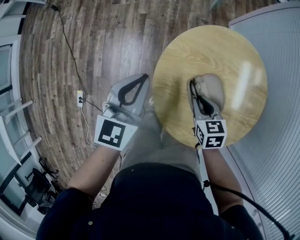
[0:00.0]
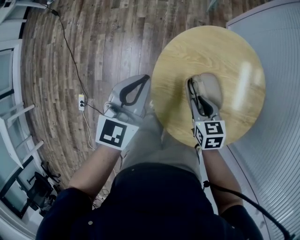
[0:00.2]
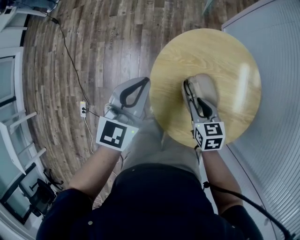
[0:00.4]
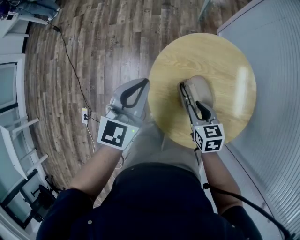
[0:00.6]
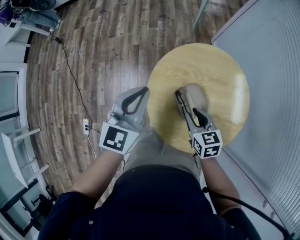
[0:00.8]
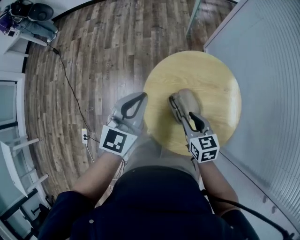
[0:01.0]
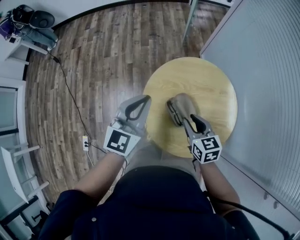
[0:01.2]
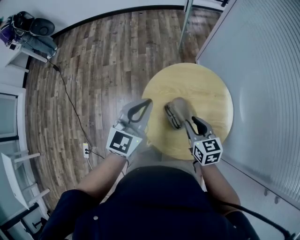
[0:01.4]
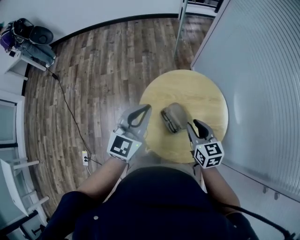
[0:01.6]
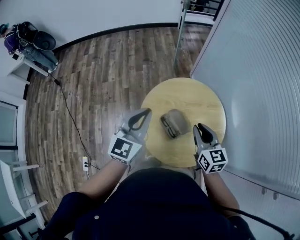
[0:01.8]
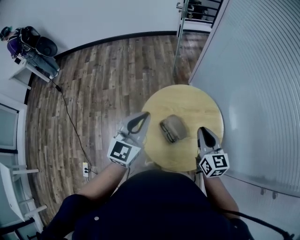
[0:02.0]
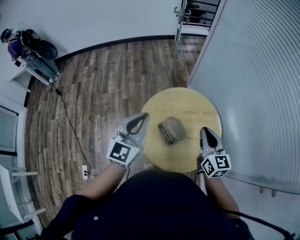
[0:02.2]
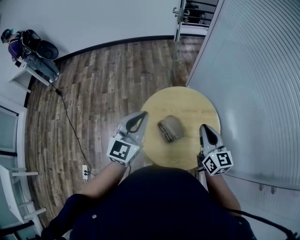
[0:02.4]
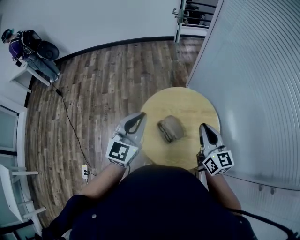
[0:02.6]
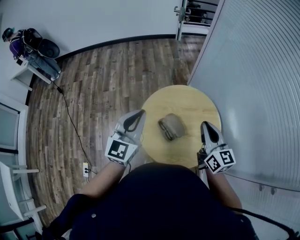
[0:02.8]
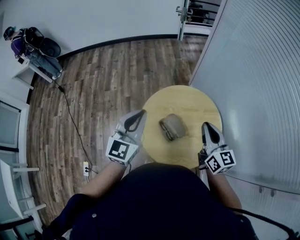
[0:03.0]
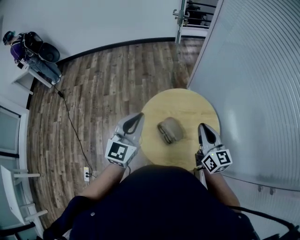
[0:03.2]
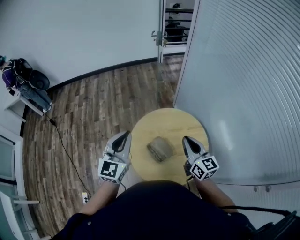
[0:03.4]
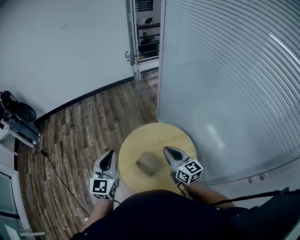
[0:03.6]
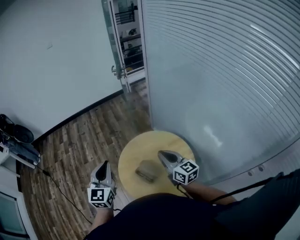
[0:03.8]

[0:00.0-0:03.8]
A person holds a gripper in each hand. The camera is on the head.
0:00.0 to 0:01.2: The right gripper heads upward, covering roughly 15 cm. The left gripper heads upward and to the right, covering some 15 cm.
0:01.2 to 0:02.6: The left gripper heads upward, covering roughly 10 cm. The right gripper travels upward and to the right by approximately 25 cm, rotates roughly 30 degrees, and closes its fingers.
0:02.6 to 0:03.8: The grippers move only a little.

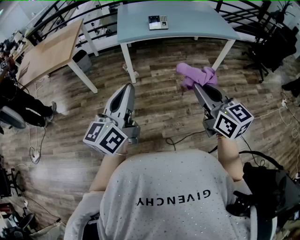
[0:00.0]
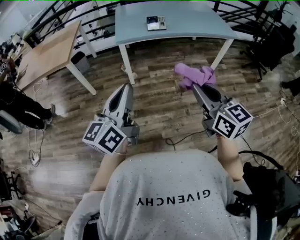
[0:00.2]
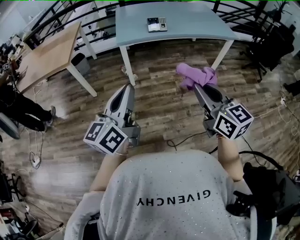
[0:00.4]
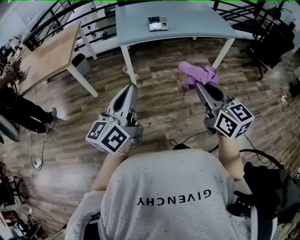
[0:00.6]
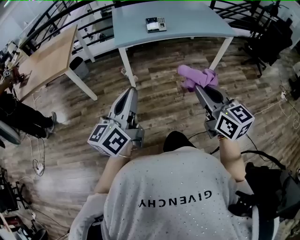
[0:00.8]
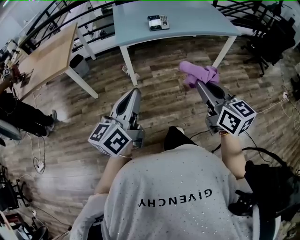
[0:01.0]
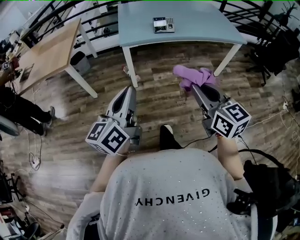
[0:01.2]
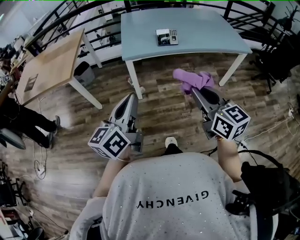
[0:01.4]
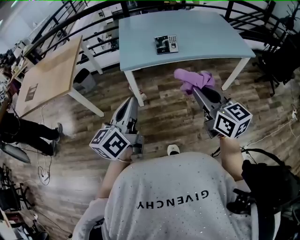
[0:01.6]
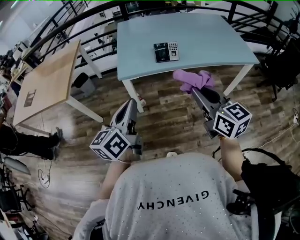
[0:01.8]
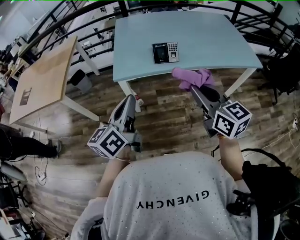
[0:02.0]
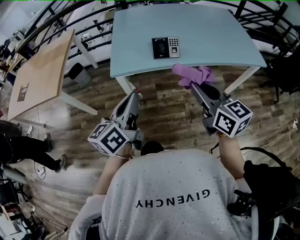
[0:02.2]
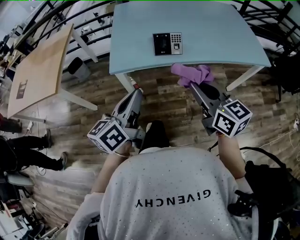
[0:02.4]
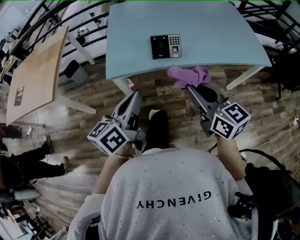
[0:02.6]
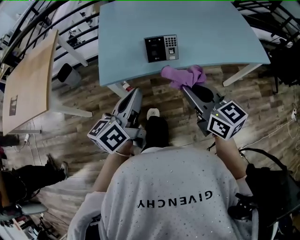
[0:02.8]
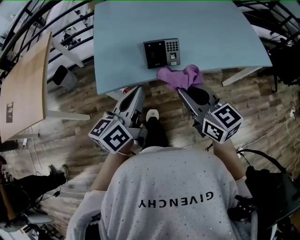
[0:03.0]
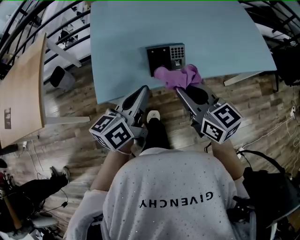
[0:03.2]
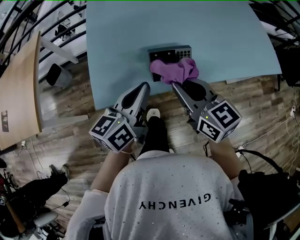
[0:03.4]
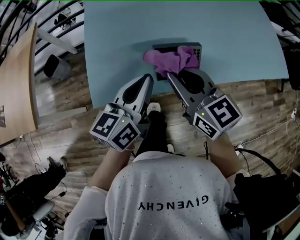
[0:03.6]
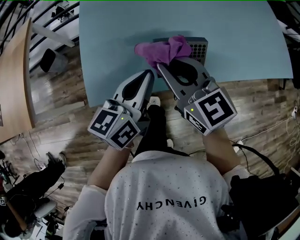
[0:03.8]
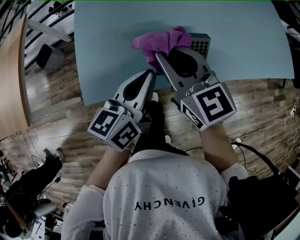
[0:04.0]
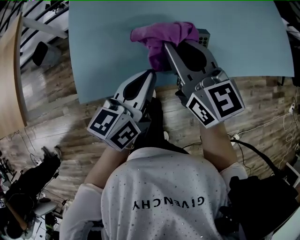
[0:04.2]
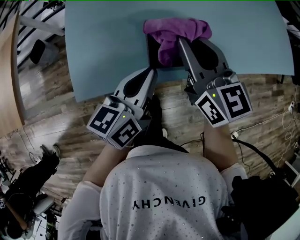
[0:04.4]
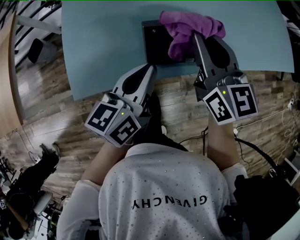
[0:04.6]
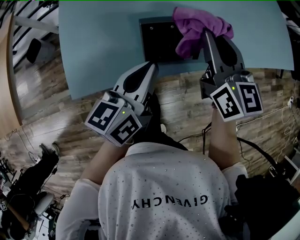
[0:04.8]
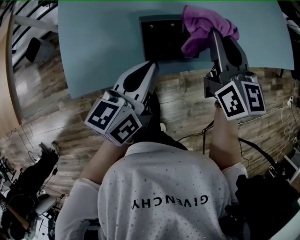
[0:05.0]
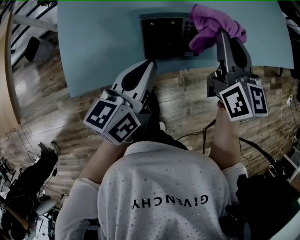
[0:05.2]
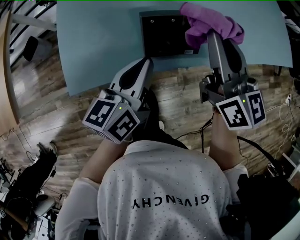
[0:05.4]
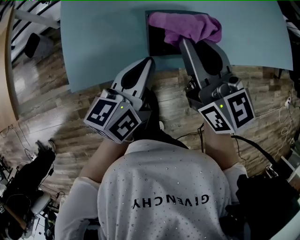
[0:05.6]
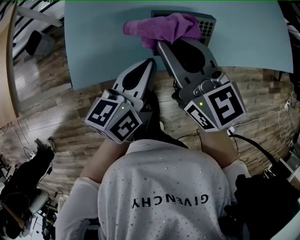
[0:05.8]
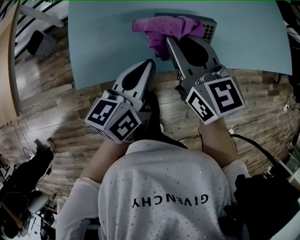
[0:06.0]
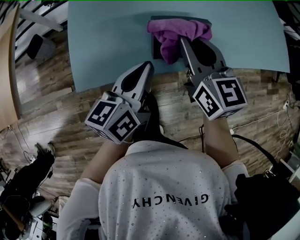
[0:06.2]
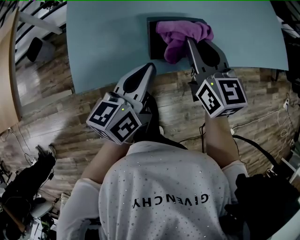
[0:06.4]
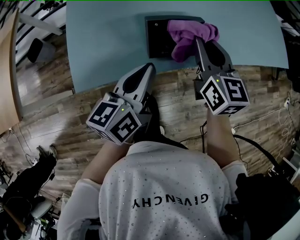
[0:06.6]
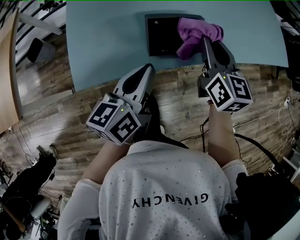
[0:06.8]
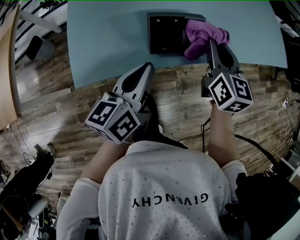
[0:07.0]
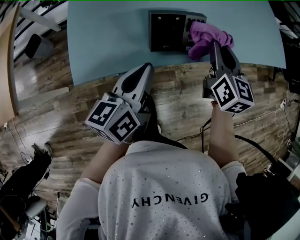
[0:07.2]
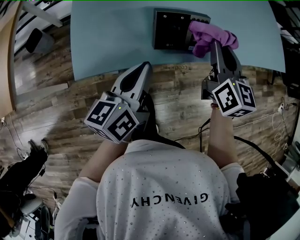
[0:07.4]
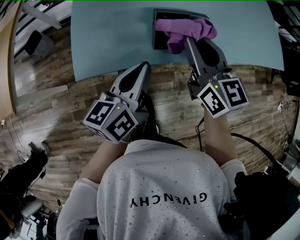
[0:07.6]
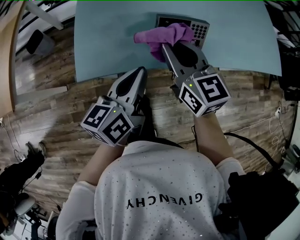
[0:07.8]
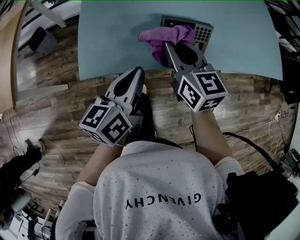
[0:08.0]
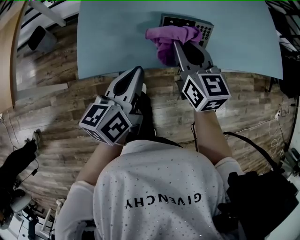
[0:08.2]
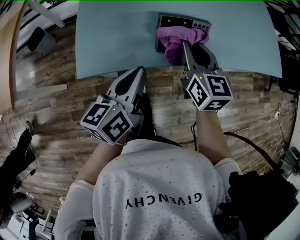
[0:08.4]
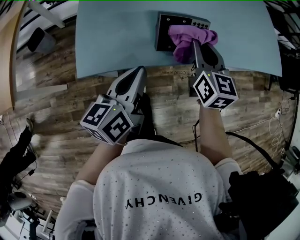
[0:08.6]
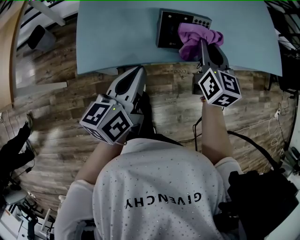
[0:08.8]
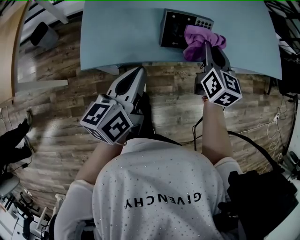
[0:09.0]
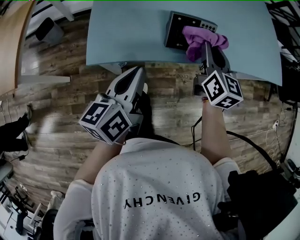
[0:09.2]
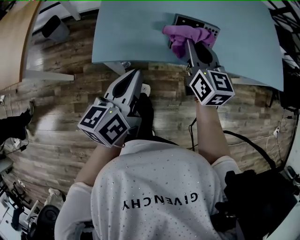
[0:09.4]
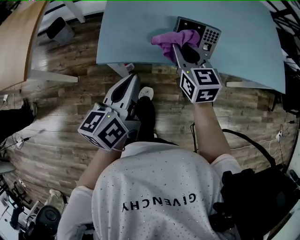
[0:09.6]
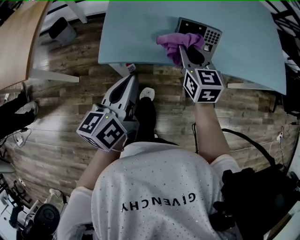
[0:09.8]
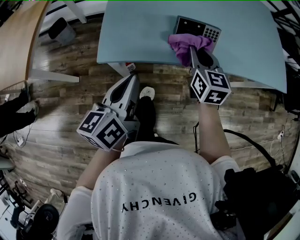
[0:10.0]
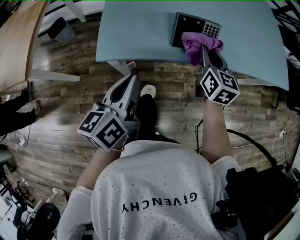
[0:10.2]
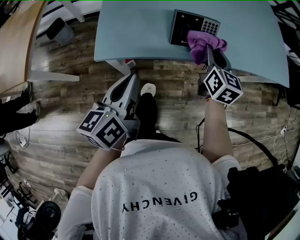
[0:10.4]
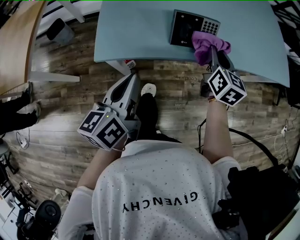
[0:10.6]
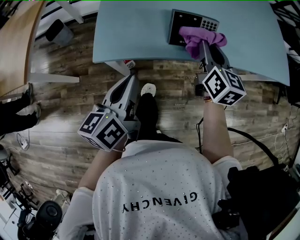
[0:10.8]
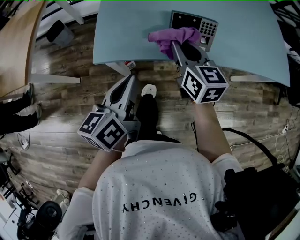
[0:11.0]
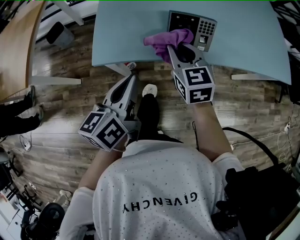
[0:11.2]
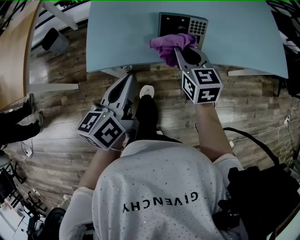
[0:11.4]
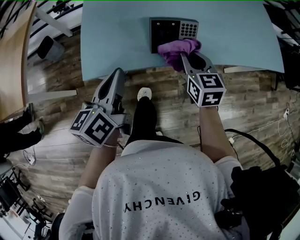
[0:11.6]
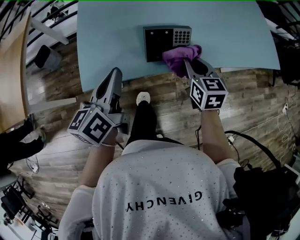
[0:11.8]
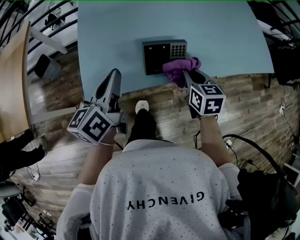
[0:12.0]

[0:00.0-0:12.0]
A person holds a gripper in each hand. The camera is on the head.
0:00.0 to 0:01.6: The grippers both shift forward by roughly 25 cm.
0:01.6 to 0:03.0: The grippers both shift forward by approximately 30 cm.
0:03.0 to 0:04.4: The left gripper heads forward and downward, covering some 20 cm. Meanwhile the right gripper goes approximately 20 cm forward.
0:04.4 to 0:06.0: The right gripper reaches approximately 10 cm to the right, then returns.
0:06.0 to 0:07.6: The right gripper travels to the right and back again, some 15 cm each way.
0:07.6 to 0:09.0: The right gripper heads to the right and downward, covering approximately 10 cm, and rotates roughly 20 degrees.
0:09.0 to 0:10.4: The left gripper ends up approximately 5 cm from where it was; the right gripper moves some 15 cm to the left and comes back.
0:10.4 to 0:12.0: The left gripper moves forward and upward, about 15 cm. Meanwhile the right gripper moves about 10 cm to the left and comes back.

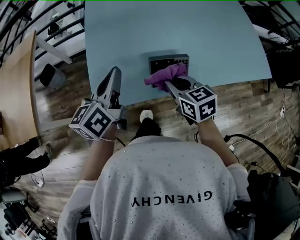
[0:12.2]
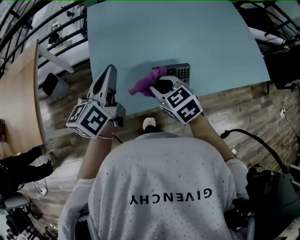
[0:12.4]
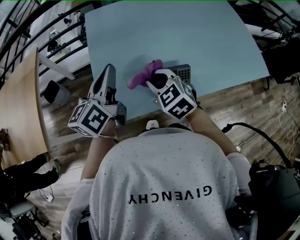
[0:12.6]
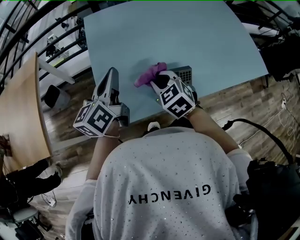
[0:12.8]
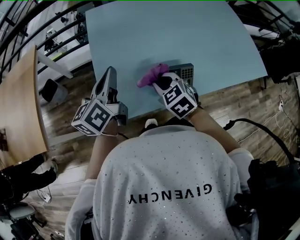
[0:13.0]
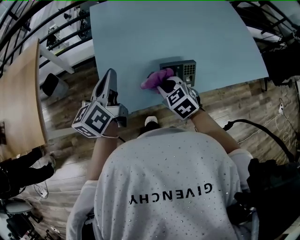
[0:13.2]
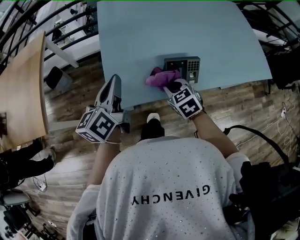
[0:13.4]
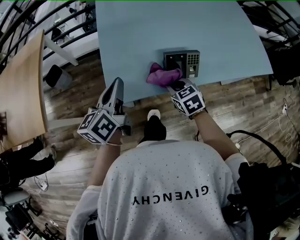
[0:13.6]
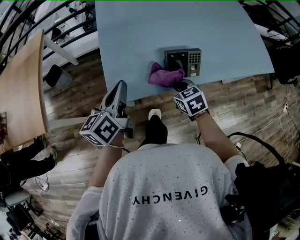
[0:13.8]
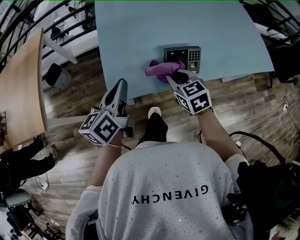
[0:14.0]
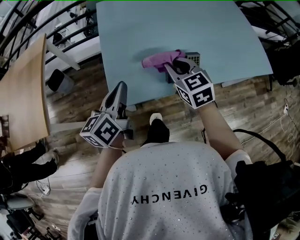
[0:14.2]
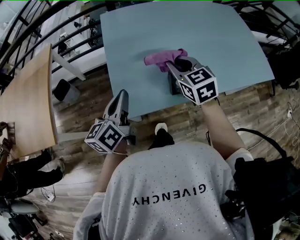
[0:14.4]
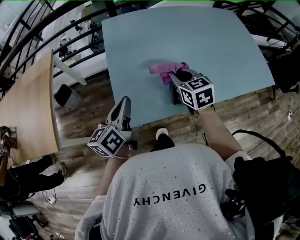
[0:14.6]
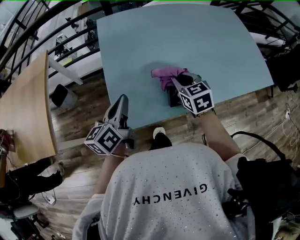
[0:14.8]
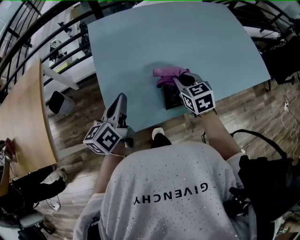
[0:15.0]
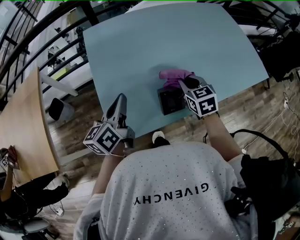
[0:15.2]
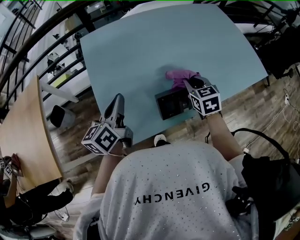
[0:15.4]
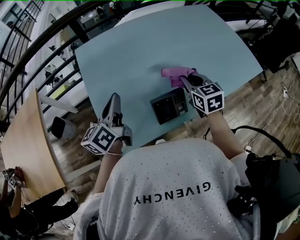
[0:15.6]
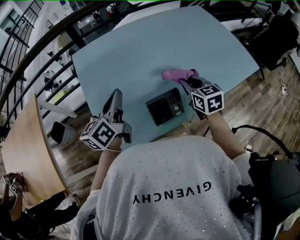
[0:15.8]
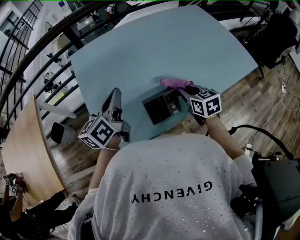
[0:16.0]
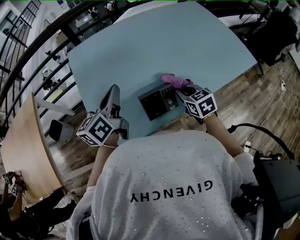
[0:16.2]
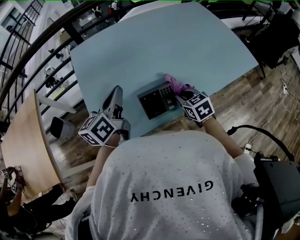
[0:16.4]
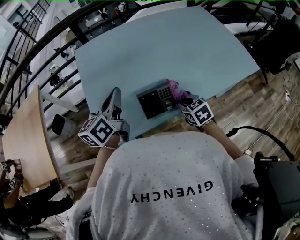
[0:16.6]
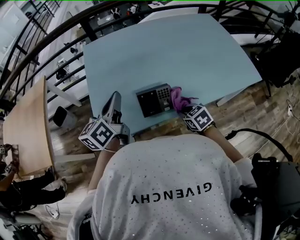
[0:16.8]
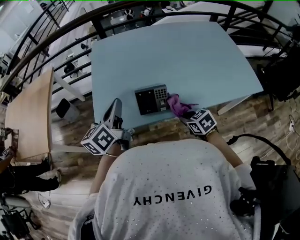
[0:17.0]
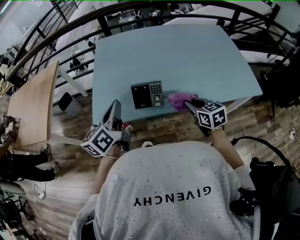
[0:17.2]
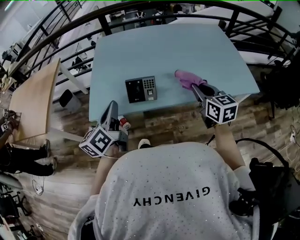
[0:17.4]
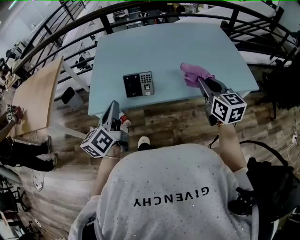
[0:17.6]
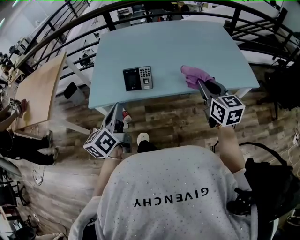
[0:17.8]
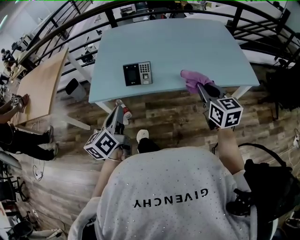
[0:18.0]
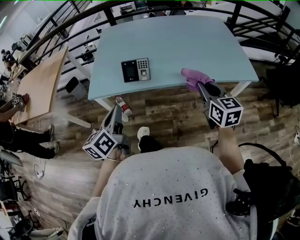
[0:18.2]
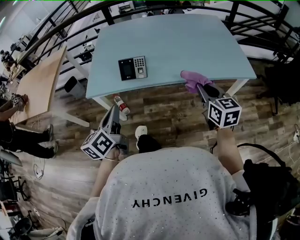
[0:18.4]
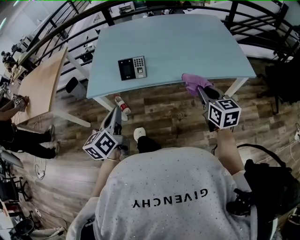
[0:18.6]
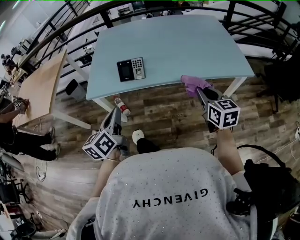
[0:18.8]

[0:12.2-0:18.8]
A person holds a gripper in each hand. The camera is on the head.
0:12.2 to 0:13.8: The left gripper is displaced backward and to the left by approximately 10 cm; the right gripper goes approximately 10 cm downward.
0:13.8 to 0:15.4: The right gripper travels forward, to the right and upward by some 20 cm, and rotates approximately 20 degrees. The left gripper shifts some 15 cm forward.
0:15.4 to 0:17.2: The left gripper moves about 20 cm. The right gripper goes downward and returns, some 10 cm each way, and rotates some 20 degrees.
0:17.2 to 0:18.8: The right gripper goes roughly 25 cm backward, to the right and upward. The left gripper goes approximately 20 cm backward.

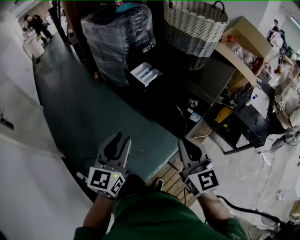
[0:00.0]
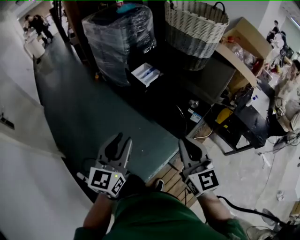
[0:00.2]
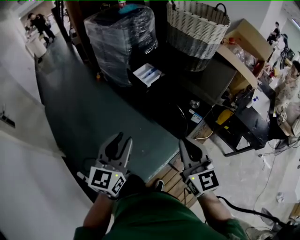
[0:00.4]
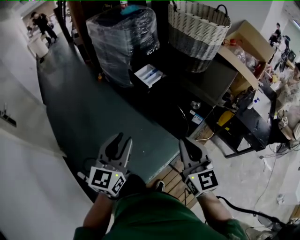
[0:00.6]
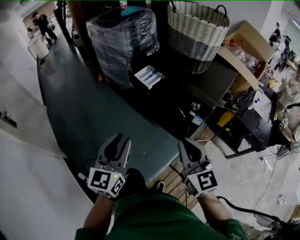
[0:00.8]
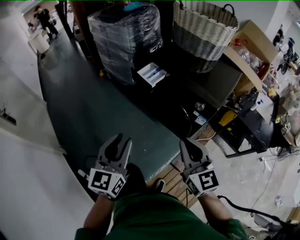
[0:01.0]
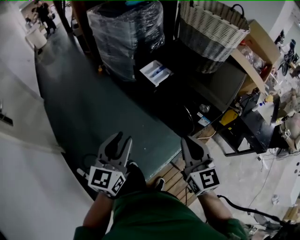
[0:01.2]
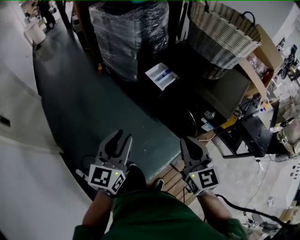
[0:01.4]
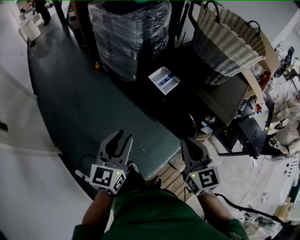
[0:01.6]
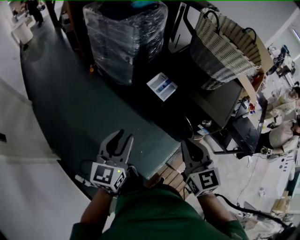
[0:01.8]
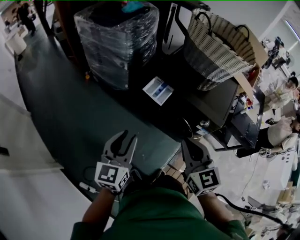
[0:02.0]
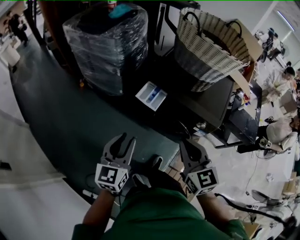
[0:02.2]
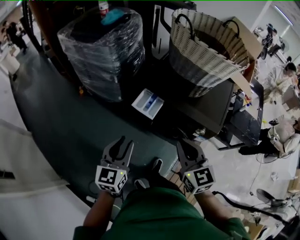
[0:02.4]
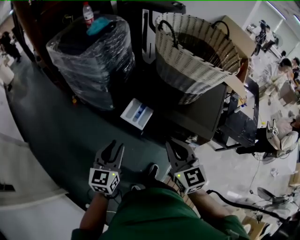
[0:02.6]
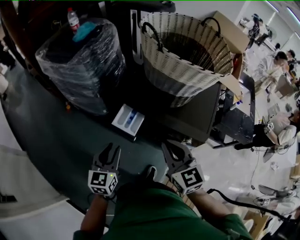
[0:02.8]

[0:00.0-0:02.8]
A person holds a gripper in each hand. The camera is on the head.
0:00.0 to 0:01.4: The two grippers go about 15 cm forward and to the left.
0:01.4 to 0:02.8: The grippers both shift forward by roughly 25 cm.
